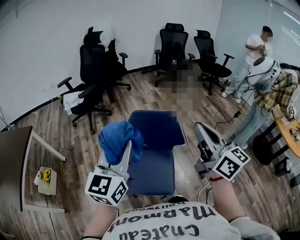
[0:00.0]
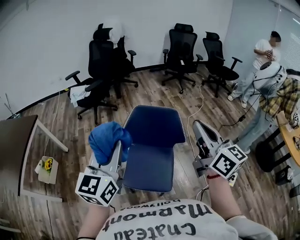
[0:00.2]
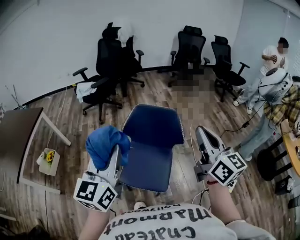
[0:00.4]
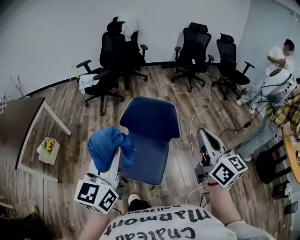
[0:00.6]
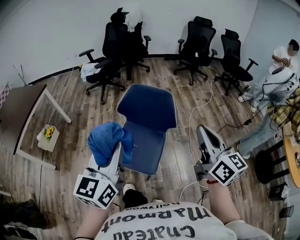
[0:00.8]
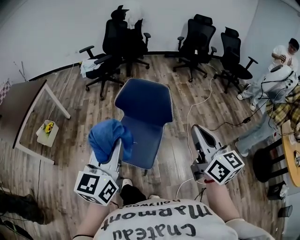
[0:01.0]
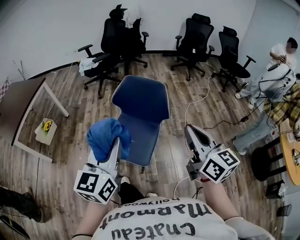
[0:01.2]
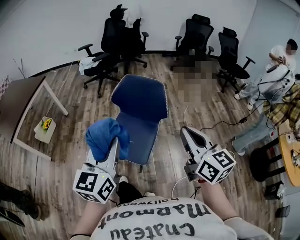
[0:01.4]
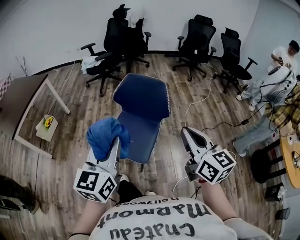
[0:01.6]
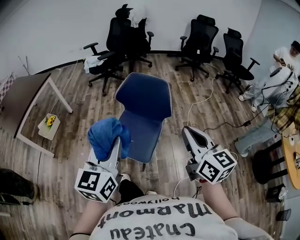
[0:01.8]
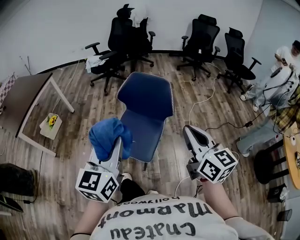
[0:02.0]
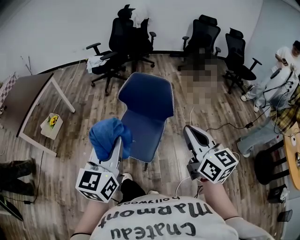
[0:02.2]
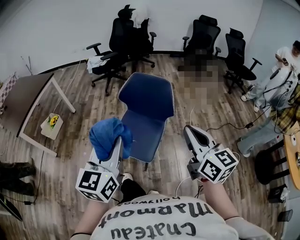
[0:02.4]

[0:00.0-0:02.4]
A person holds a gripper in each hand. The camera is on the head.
0:00.0 to 0:01.2: The right gripper heads backward, to the right and downward, covering about 20 cm, while the left gripper moves backward and to the right, some 20 cm, and swivels about 20 degrees.
0:01.2 to 0:02.4: The grippers stay close to where they were, moving slightly.

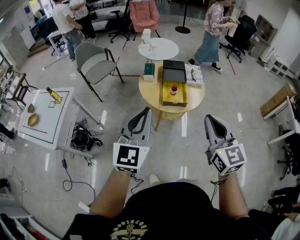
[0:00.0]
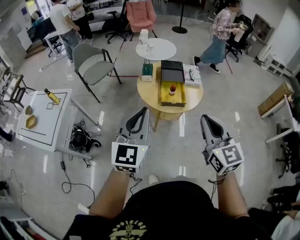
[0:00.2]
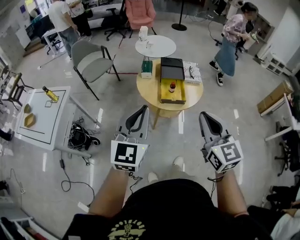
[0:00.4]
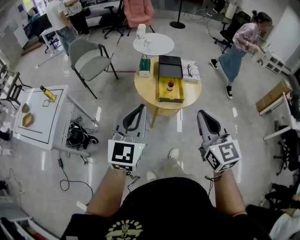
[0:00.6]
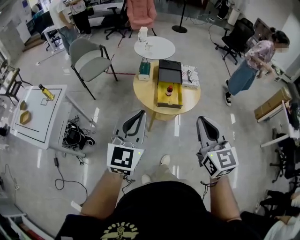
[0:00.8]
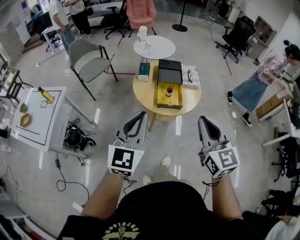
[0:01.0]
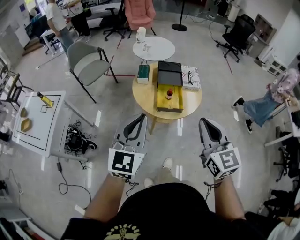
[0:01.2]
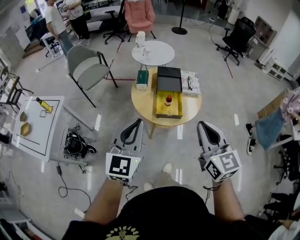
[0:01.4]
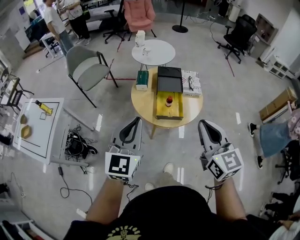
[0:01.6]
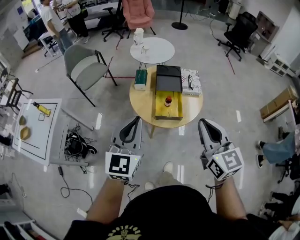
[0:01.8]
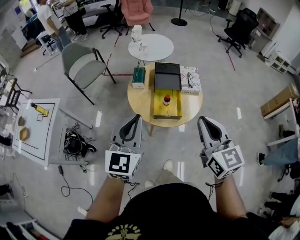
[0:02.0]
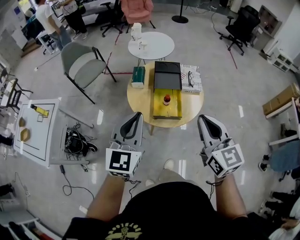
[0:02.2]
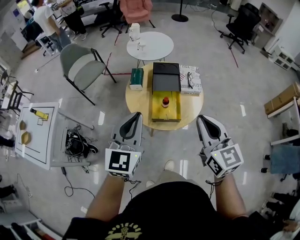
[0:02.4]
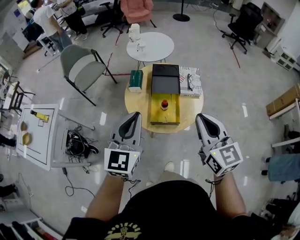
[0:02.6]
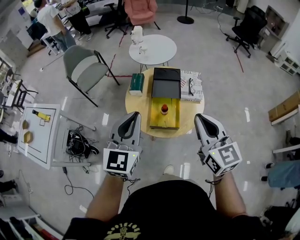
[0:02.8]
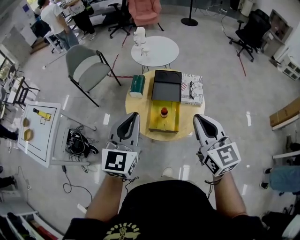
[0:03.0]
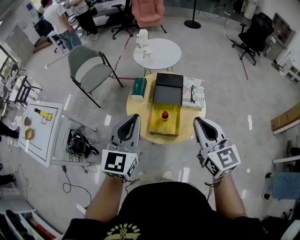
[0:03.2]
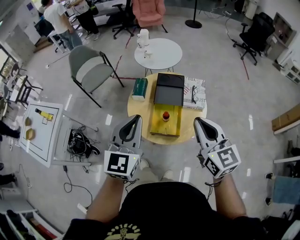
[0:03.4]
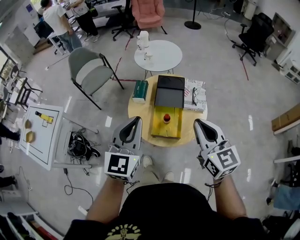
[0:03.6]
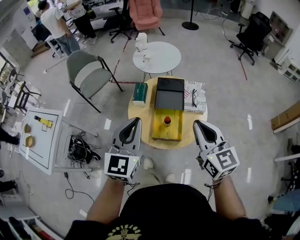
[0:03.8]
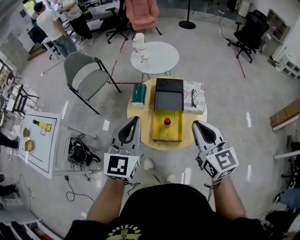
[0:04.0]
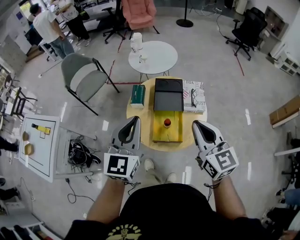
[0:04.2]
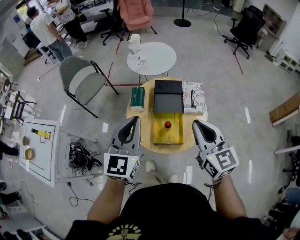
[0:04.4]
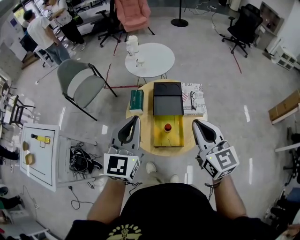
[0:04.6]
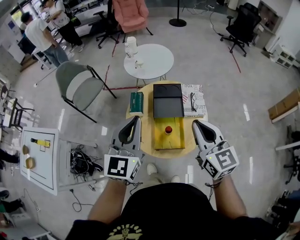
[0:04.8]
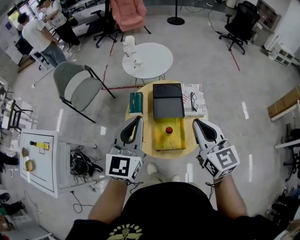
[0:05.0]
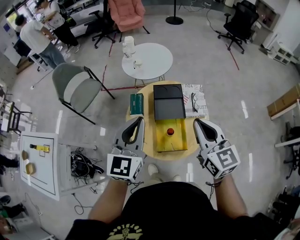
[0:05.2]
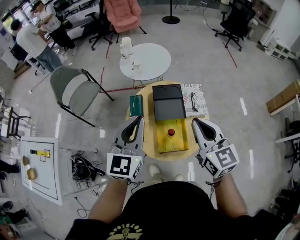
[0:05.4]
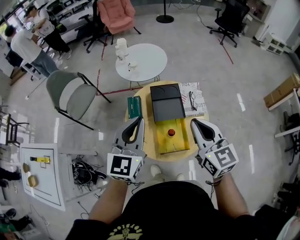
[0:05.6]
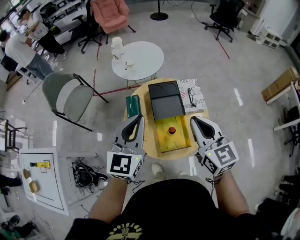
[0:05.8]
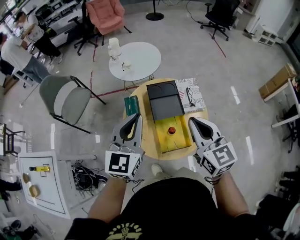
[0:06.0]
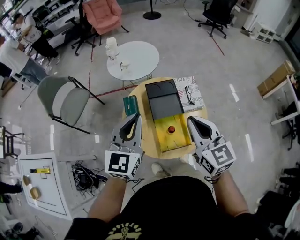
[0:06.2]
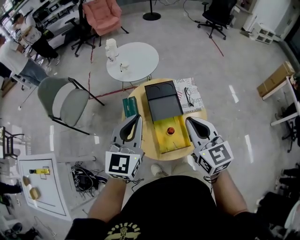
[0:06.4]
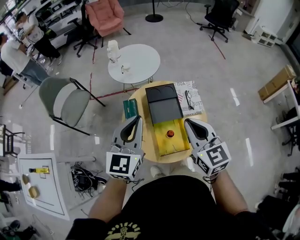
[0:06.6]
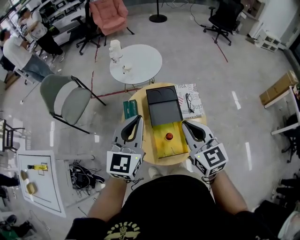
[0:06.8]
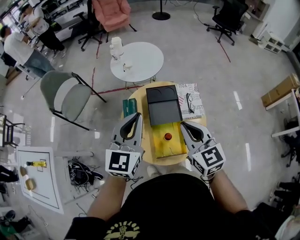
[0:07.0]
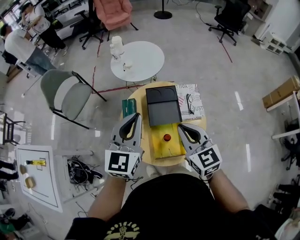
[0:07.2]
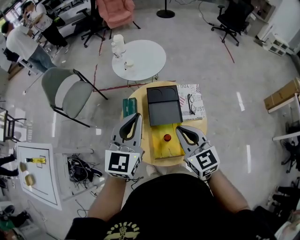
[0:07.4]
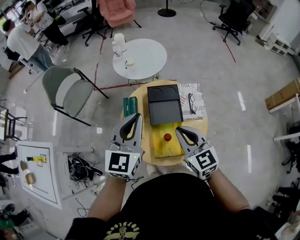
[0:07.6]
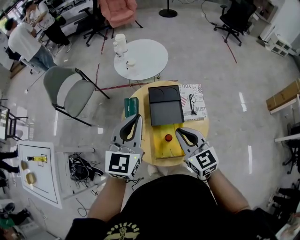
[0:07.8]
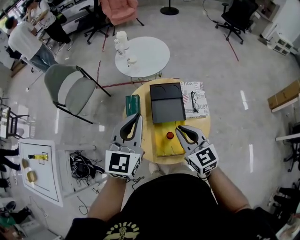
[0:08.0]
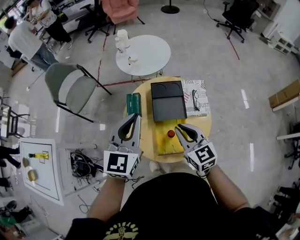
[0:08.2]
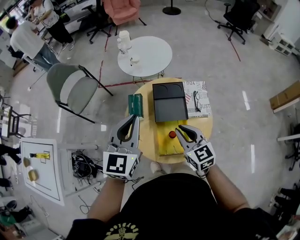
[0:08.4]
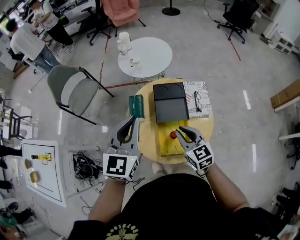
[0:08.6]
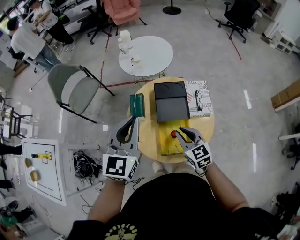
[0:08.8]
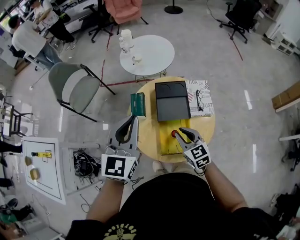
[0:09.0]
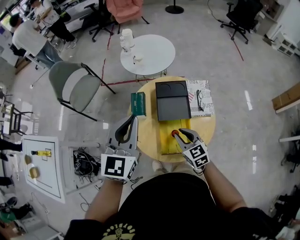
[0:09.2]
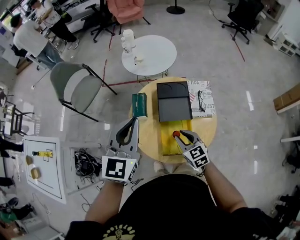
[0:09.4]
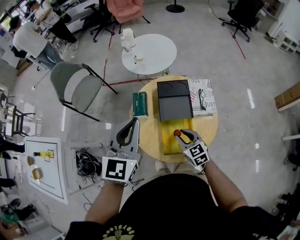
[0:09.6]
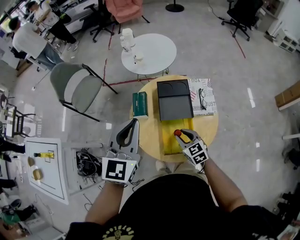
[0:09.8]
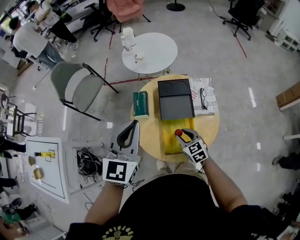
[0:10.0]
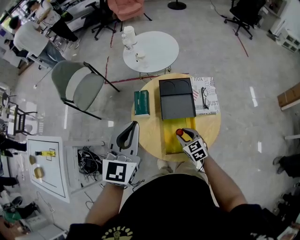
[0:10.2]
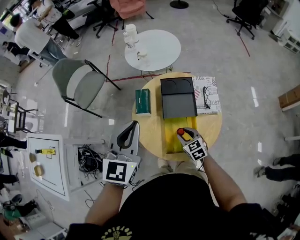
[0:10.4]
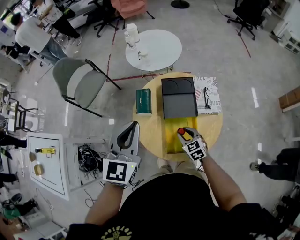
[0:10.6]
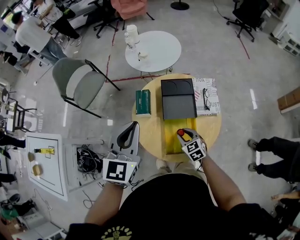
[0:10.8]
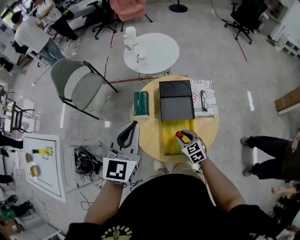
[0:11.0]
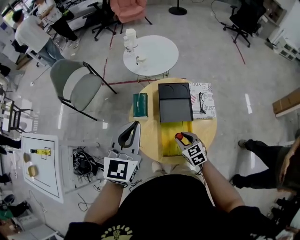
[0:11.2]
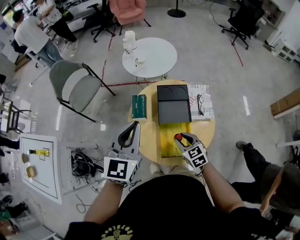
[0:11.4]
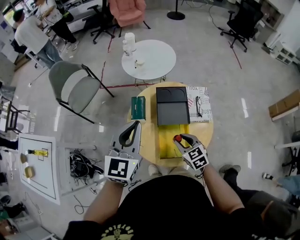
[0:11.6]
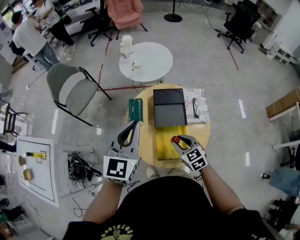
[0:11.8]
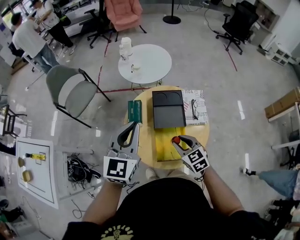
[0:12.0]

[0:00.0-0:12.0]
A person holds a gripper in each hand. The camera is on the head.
0:00.0 to 0:01.6: Both grippers travel together forward, roughly 10 cm.
0:01.6 to 0:03.0: Both grippers move forward and to the right, approximately 15 cm.
0:03.0 to 0:04.4: The two grippers go some 10 cm forward.
0:04.4 to 0:06.0: The right gripper heads forward and to the left, covering some 10 cm. Meanwhile the left gripper travels forward by about 10 cm.
0:06.0 to 0:07.6: The right gripper is displaced downward by some 5 cm; the left gripper shifts by some 5 cm.
0:07.6 to 0:09.0: The right gripper moves downward, approximately 10 cm.
0:09.0 to 0:10.4: The right gripper shifts approximately 15 cm downward.
0:10.4 to 0:12.0: The right gripper shifts about 10 cm upward.

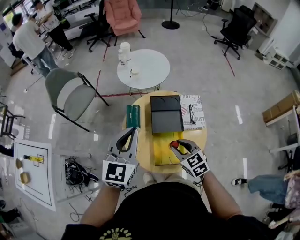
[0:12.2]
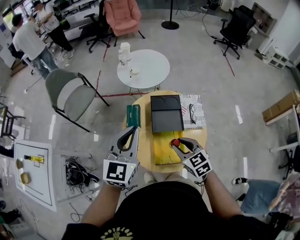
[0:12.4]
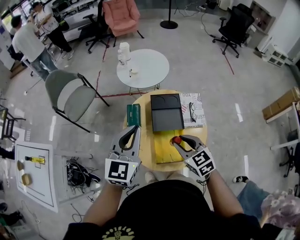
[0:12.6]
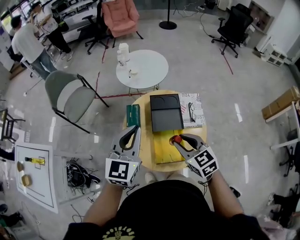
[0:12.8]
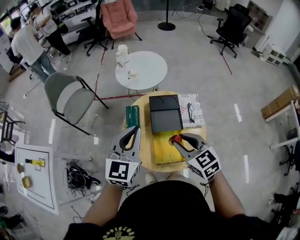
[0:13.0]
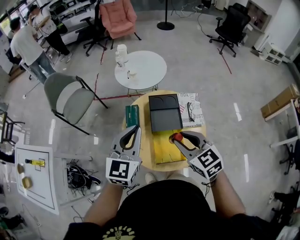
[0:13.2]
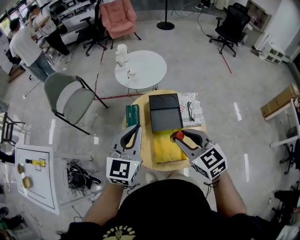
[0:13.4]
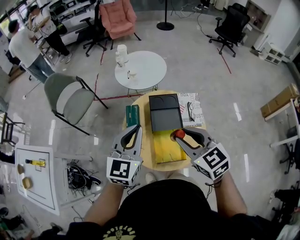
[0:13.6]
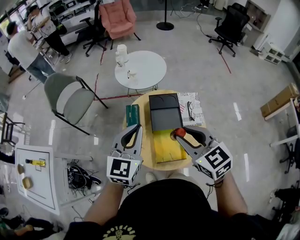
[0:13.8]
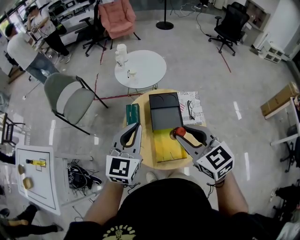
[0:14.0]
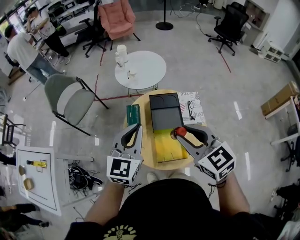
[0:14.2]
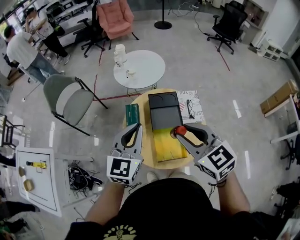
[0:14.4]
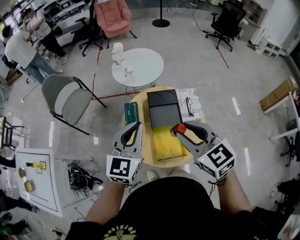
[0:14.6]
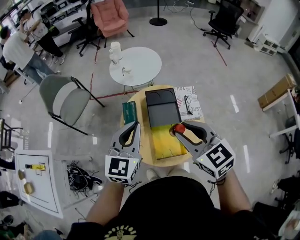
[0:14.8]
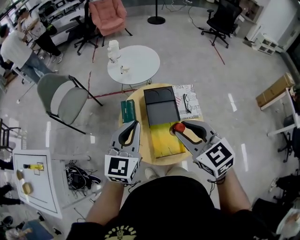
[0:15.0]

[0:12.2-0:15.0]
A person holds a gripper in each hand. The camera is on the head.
0:12.2 to 0:13.6: The right gripper is displaced upward by approximately 15 cm.
0:13.6 to 0:15.0: There are only small adjustments of the grippers.

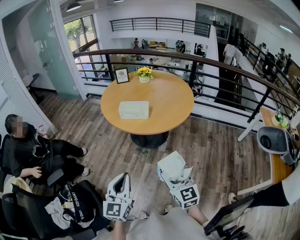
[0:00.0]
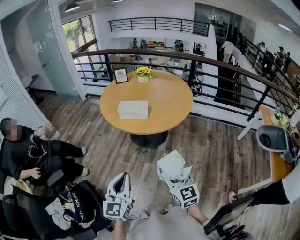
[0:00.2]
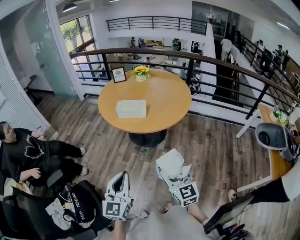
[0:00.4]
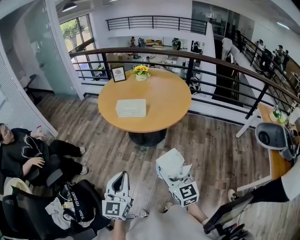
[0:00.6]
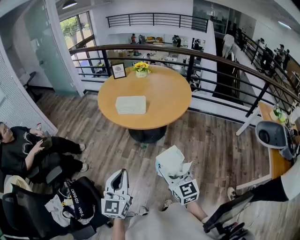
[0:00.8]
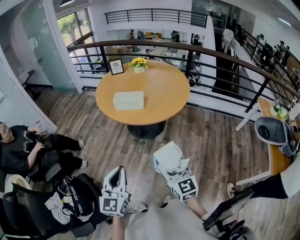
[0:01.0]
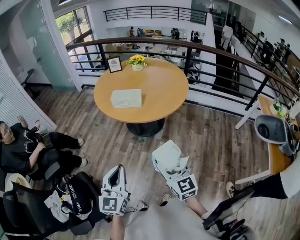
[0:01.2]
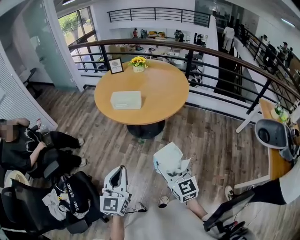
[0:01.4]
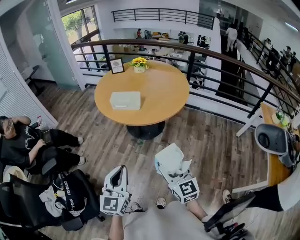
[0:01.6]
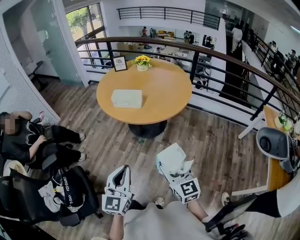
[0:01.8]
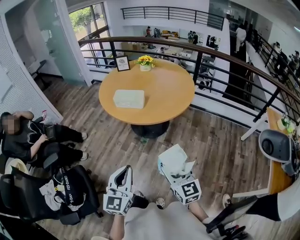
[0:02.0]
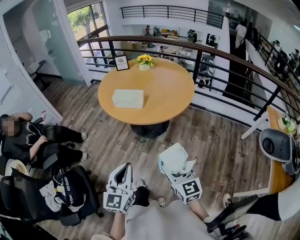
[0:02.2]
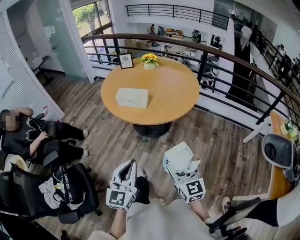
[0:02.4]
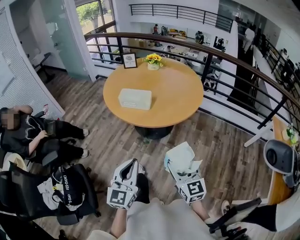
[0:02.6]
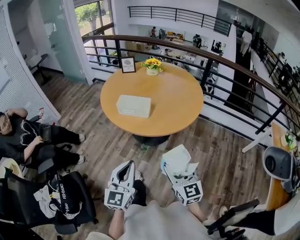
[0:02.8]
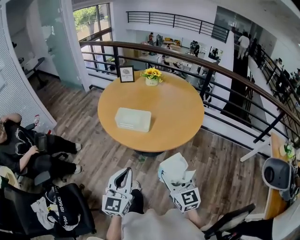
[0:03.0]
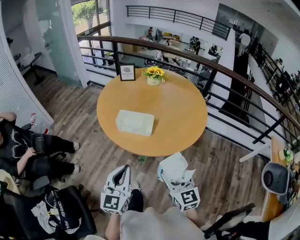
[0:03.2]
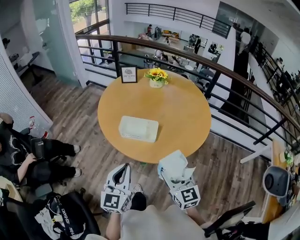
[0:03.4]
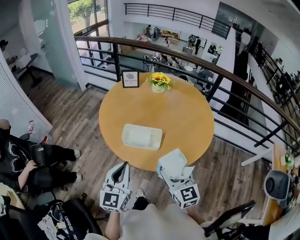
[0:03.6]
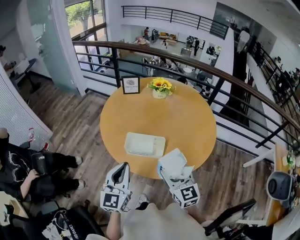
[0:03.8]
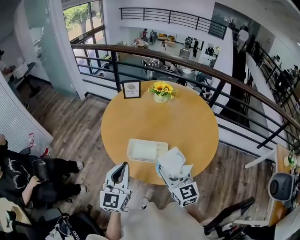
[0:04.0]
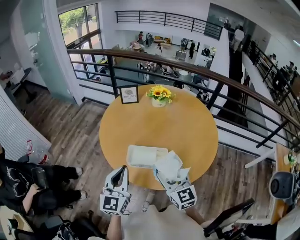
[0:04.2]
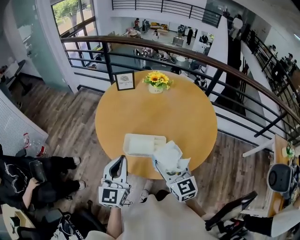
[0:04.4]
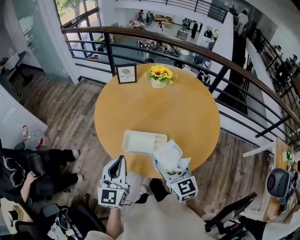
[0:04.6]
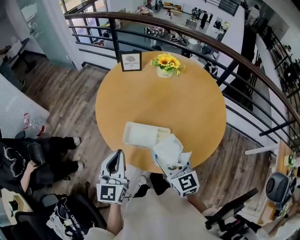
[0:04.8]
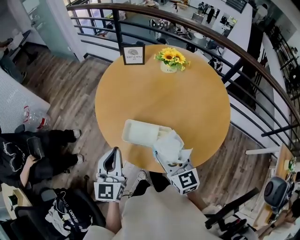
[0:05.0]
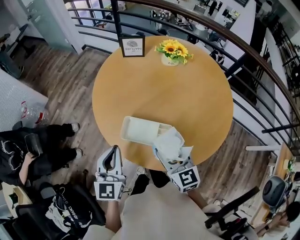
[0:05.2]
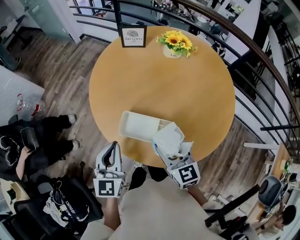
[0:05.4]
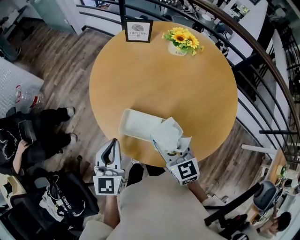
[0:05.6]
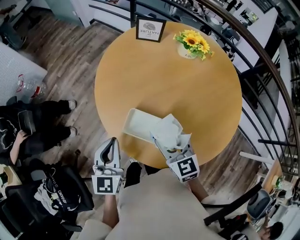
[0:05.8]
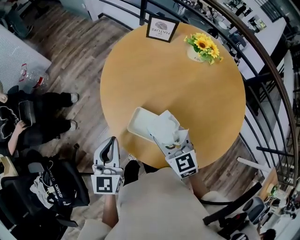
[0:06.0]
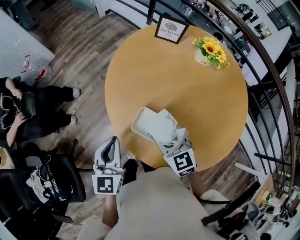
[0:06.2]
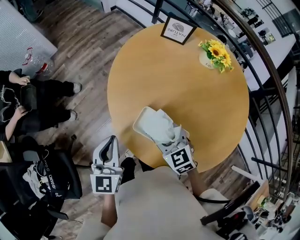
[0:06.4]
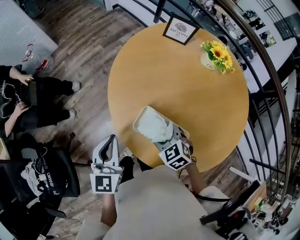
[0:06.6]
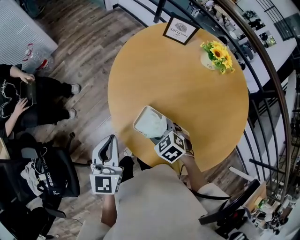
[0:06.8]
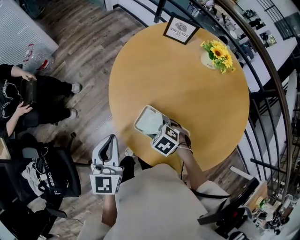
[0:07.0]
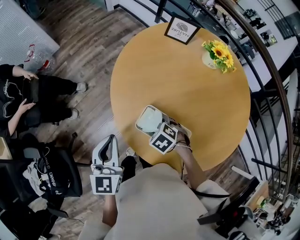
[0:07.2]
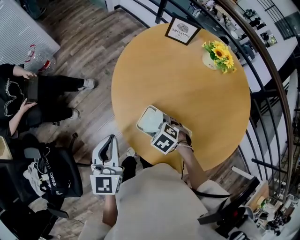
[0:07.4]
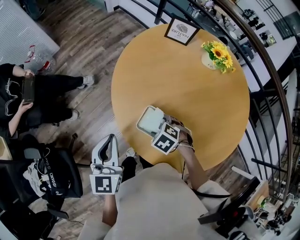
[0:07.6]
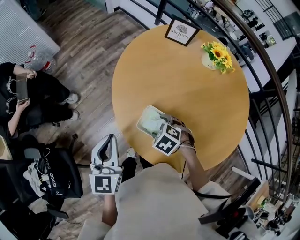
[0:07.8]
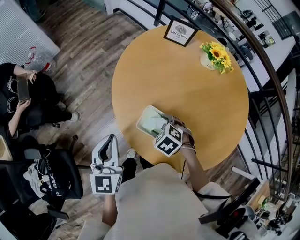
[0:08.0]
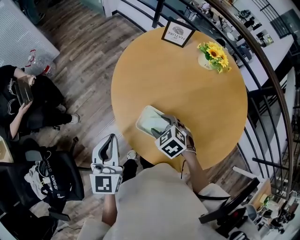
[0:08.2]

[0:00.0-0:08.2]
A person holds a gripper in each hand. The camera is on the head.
0:00.0 to 0:01.6: The grippers both shift to the right by some 5 cm.
0:01.6 to 0:03.2: Both grippers move forward, some 20 cm.
0:03.2 to 0:05.0: The two grippers go approximately 20 cm forward.
0:05.0 to 0:06.6: The left gripper travels to the left by roughly 5 cm. Meanwhile the right gripper shifts some 15 cm downward, forward and to the left, and tilts its fingers approximately 30 degrees downward.
